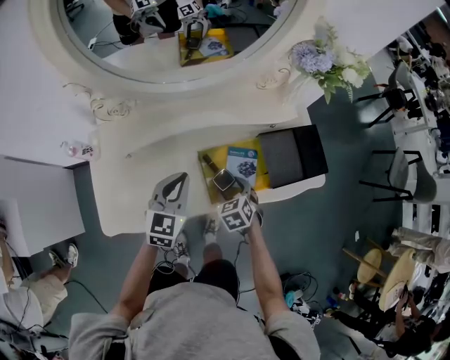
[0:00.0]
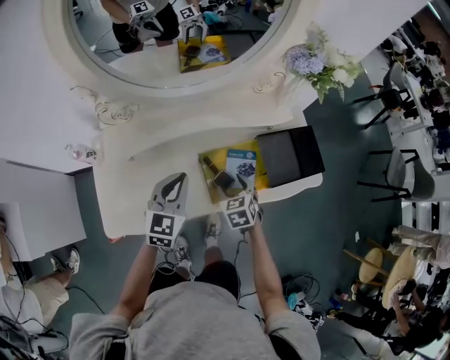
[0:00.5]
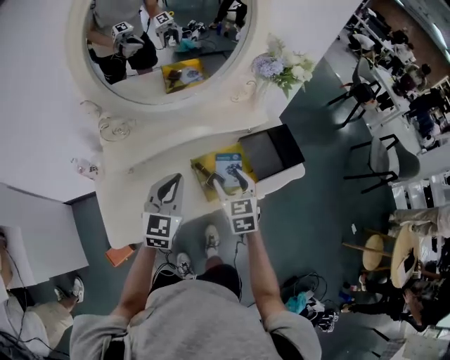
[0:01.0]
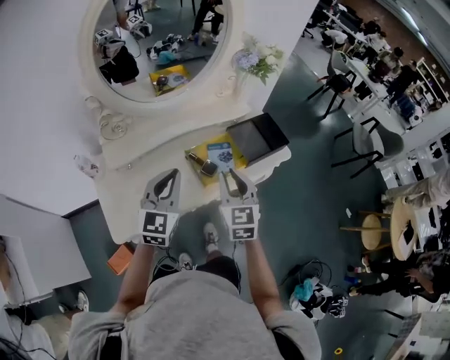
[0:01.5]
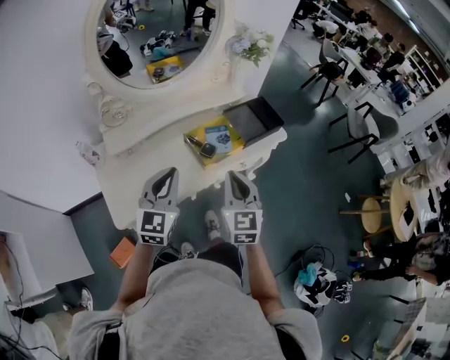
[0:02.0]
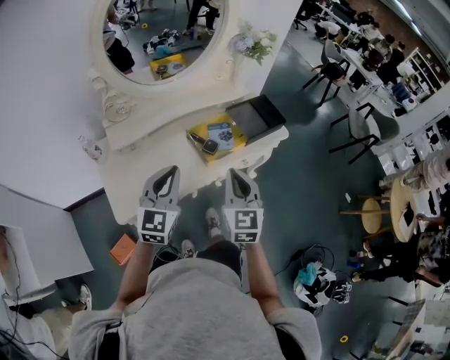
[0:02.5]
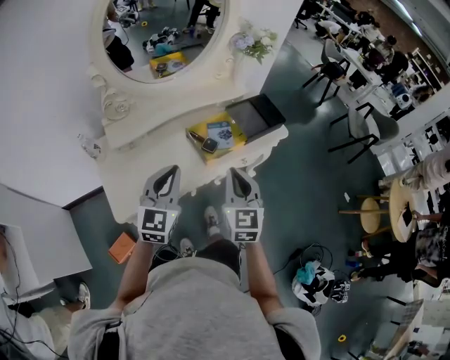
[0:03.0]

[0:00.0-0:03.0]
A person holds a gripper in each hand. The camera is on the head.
0:00.0 to 0:01.5: The left gripper travels upward and backward by approximately 20 cm, and turns by about 20 degrees. Meanwhile the right gripper heads upward and backward, covering roughly 30 cm, angles its fingers upward, by about 40 degrees, and closes.
0:01.5 to 0:03.0: Both grippers move backward, approximately 10 cm.

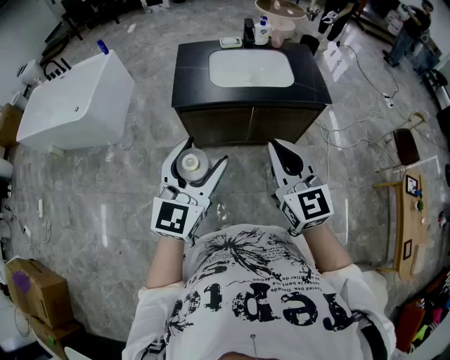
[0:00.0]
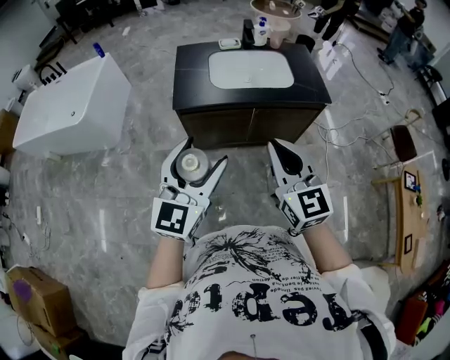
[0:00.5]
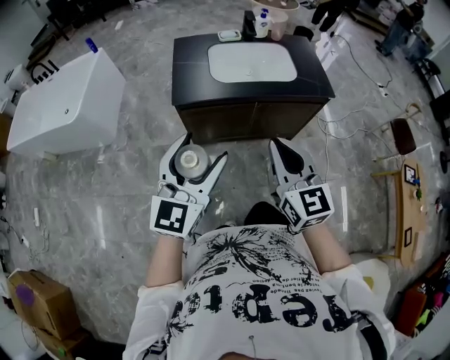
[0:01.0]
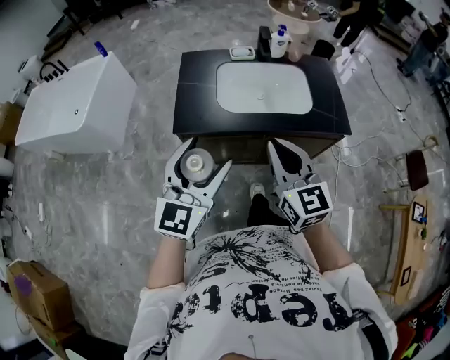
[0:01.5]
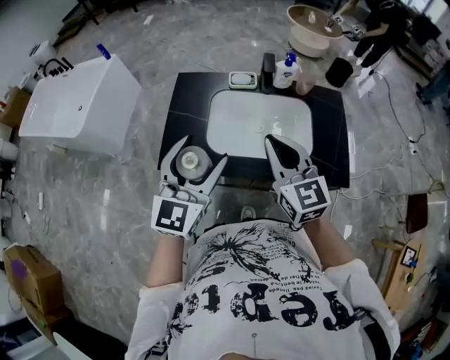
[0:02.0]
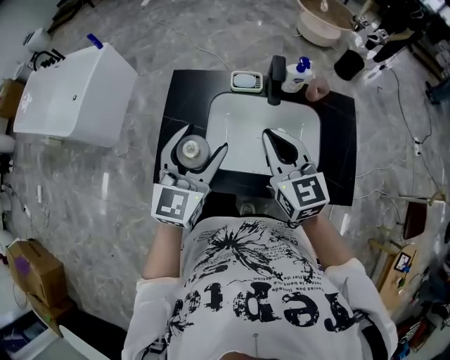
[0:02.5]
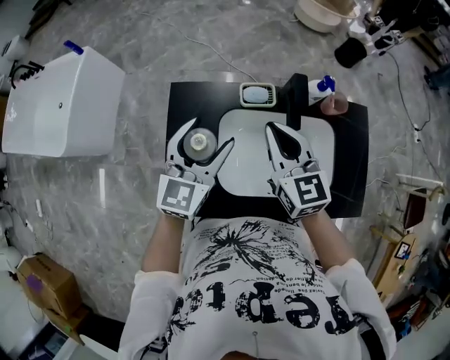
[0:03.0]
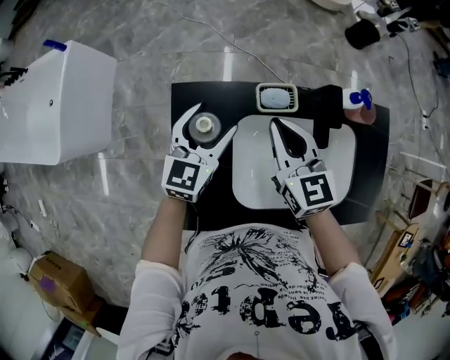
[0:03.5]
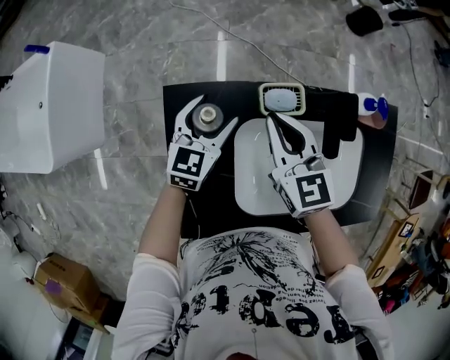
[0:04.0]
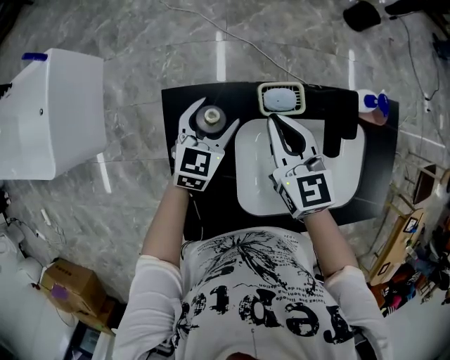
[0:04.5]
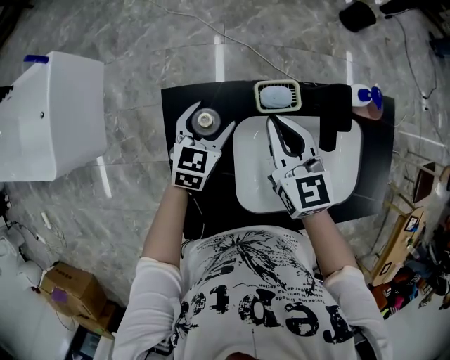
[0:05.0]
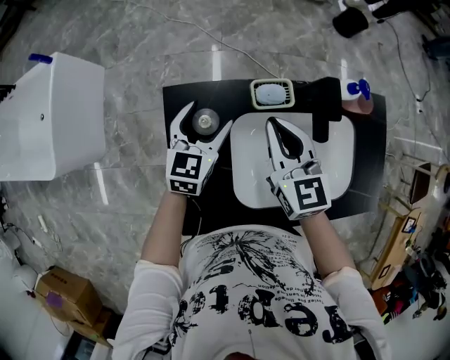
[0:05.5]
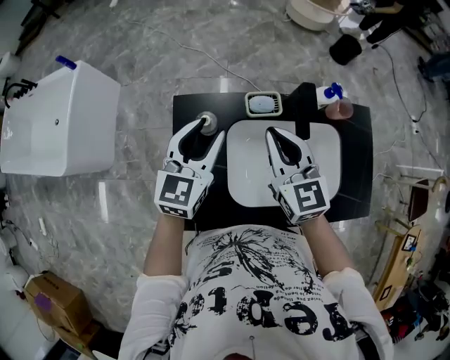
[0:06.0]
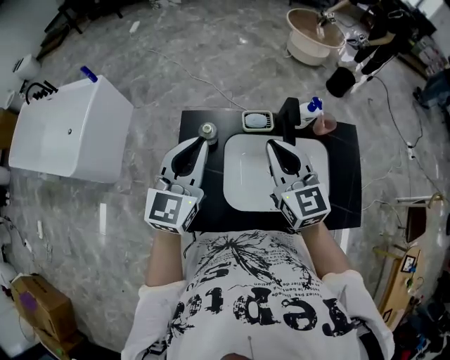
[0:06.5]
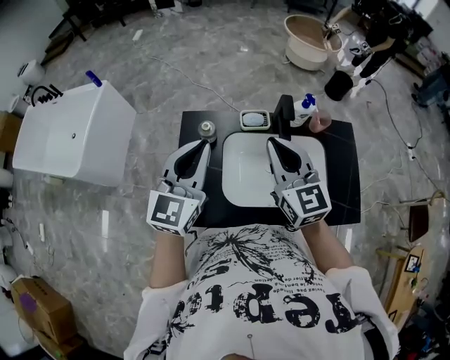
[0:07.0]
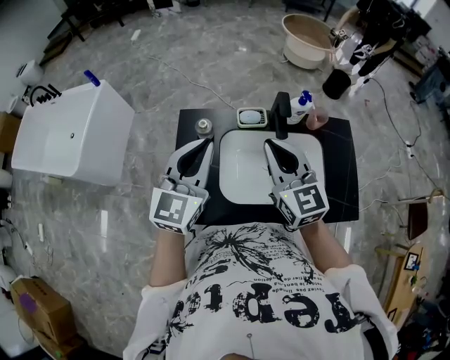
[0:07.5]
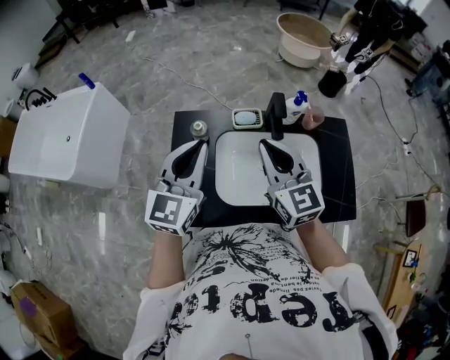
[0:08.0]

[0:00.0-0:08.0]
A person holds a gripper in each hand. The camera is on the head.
0:00.0 to 0:02.0: The two grippers travel together, forward, roughly 50 cm.
0:02.0 to 0:04.0: The pair of grippers is taken forward, approximately 50 cm. The grippers both shift downward by roughly 25 cm. The left gripper swivels approximately 30 degrees.
0:04.0 to 0:06.0: The two grippers go approximately 20 cm upward and backward. The left gripper closes its fingers.
0:06.0 to 0:08.0: Both grippers move backward and upward, approximately 15 cm. The left gripper closes.

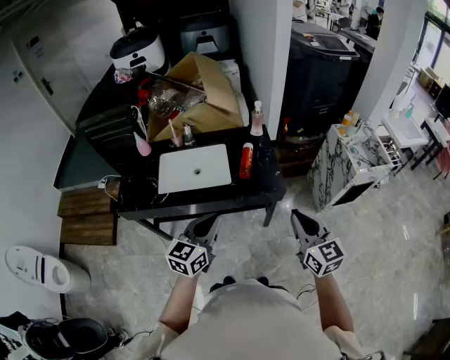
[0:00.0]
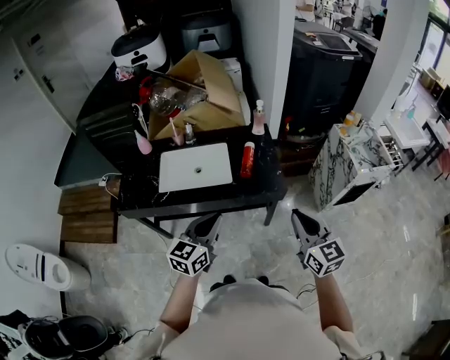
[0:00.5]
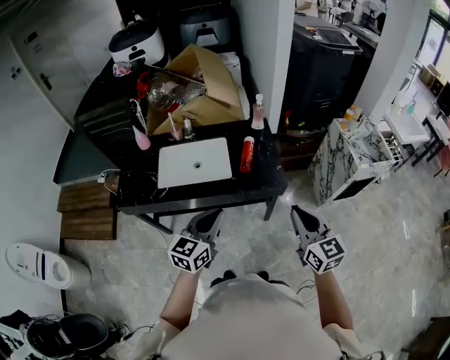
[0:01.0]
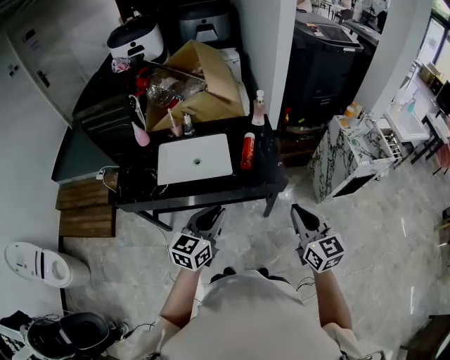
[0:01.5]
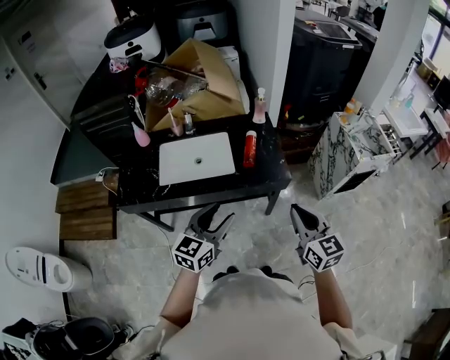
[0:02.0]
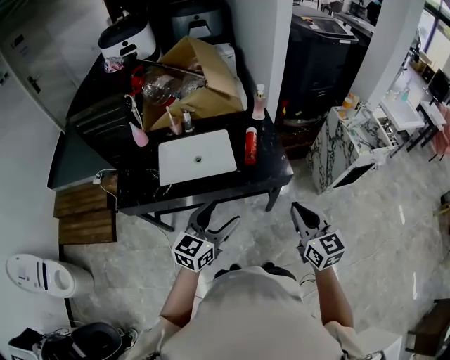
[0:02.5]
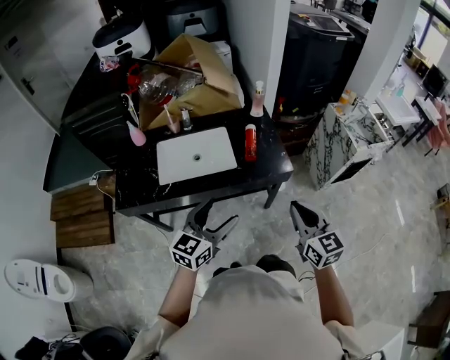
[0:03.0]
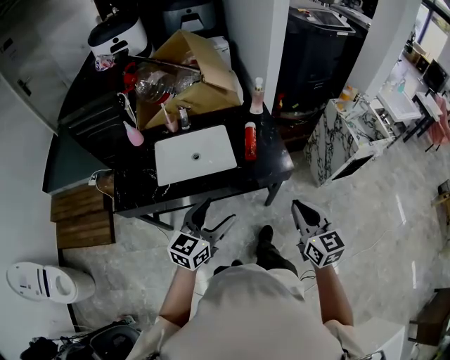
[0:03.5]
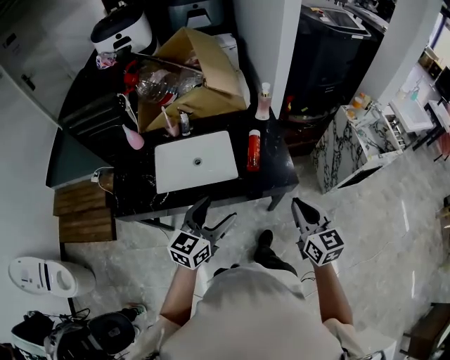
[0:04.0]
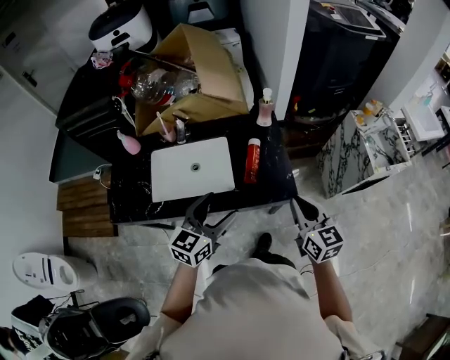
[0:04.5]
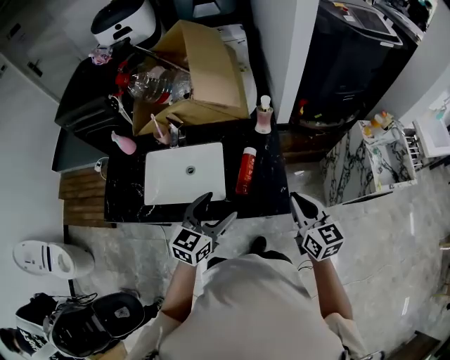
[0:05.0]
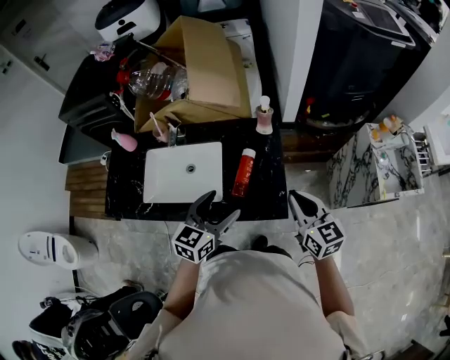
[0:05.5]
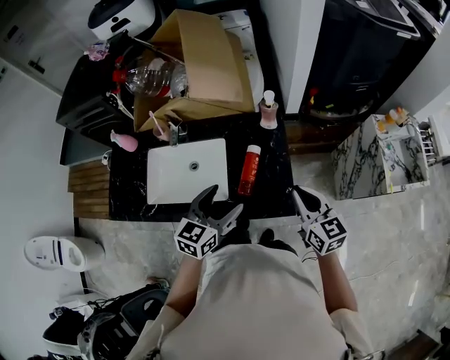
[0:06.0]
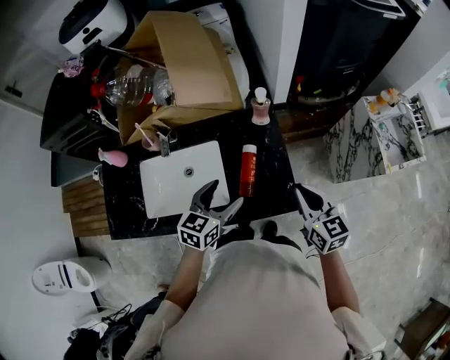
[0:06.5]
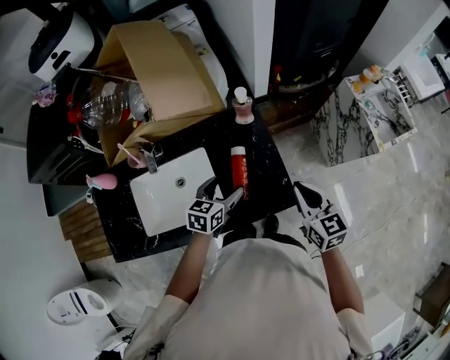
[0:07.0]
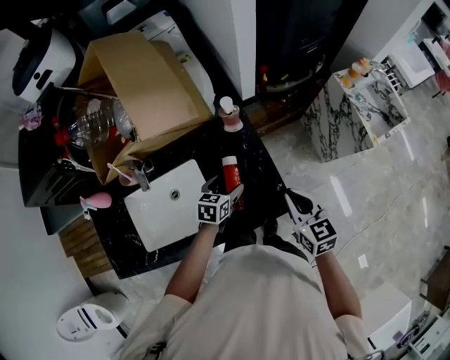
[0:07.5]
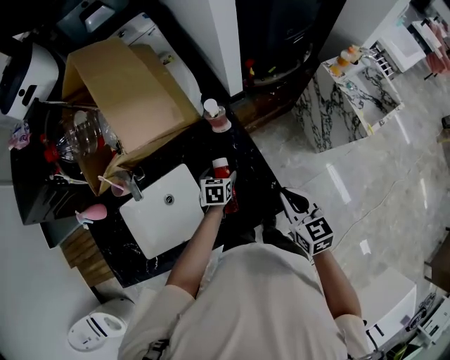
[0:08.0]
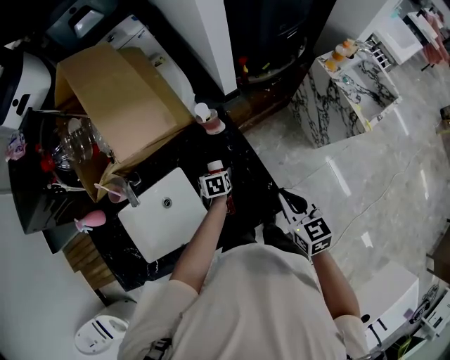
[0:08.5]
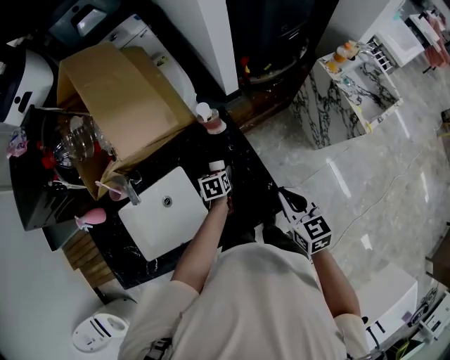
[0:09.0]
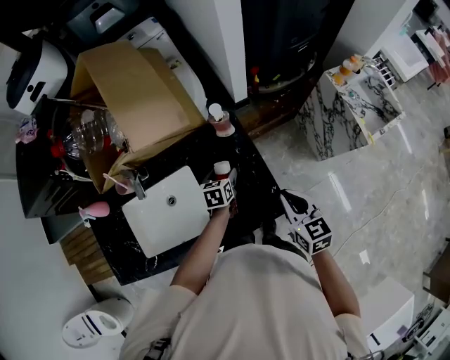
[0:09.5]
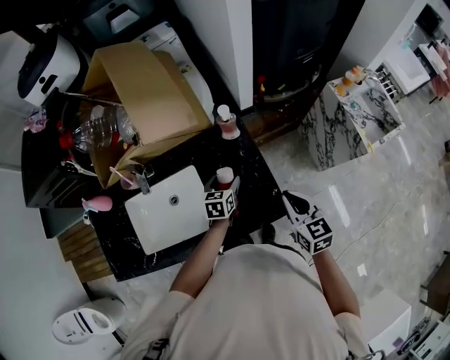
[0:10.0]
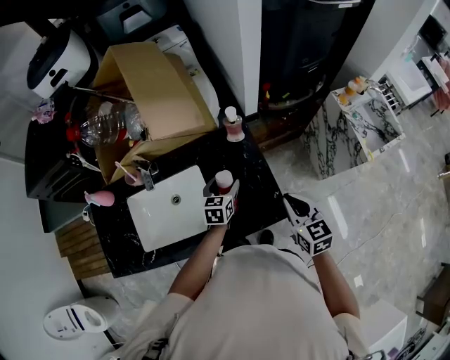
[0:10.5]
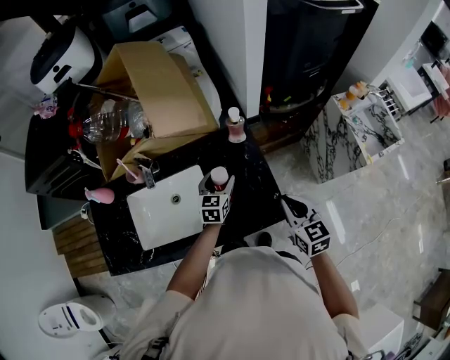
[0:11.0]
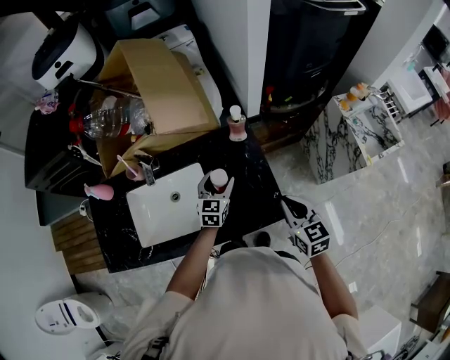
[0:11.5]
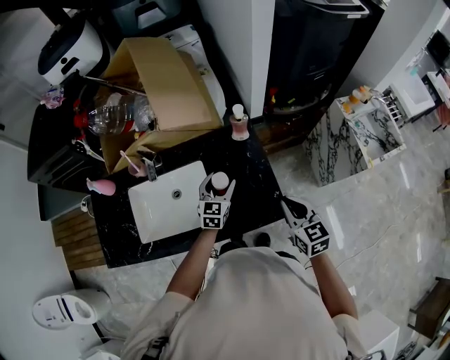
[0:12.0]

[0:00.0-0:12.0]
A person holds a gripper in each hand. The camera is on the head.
0:00.0 to 0:02.0: The left gripper opens.
0:02.0 to 0:04.0: The grippers both shift forward by roughly 10 cm. The left gripper opens up.
0:04.0 to 0:06.0: The left gripper is displaced forward and to the right by some 25 cm; the right gripper heads forward, covering approximately 25 cm.
0:06.0 to 0:08.0: The left gripper is displaced downward and forward by approximately 30 cm, and tips its fingers downward by about 30 degrees. The right gripper is displaced downward by about 5 cm, and rotates about 20 degrees.
0:08.0 to 0:10.0: The left gripper is displaced upward by some 5 cm.
0:10.0 to 0:12.0: The left gripper shifts roughly 5 cm upward, and swivels about 30 degrees.

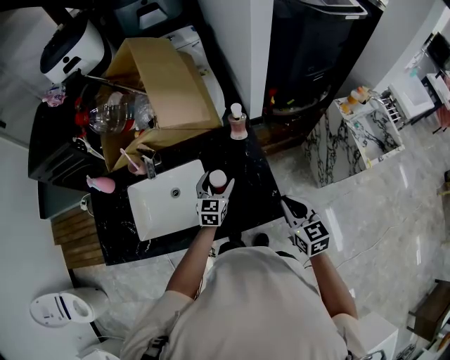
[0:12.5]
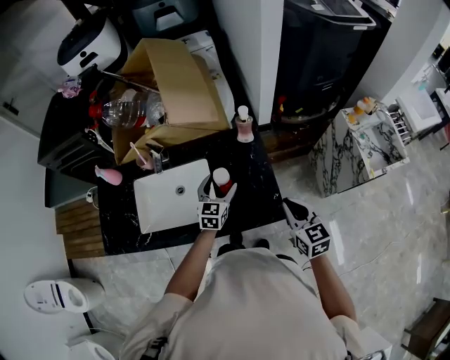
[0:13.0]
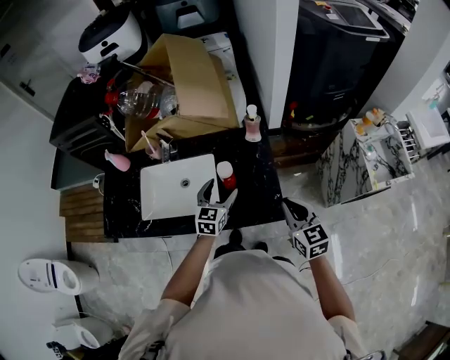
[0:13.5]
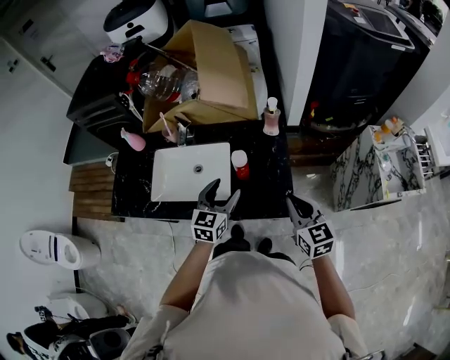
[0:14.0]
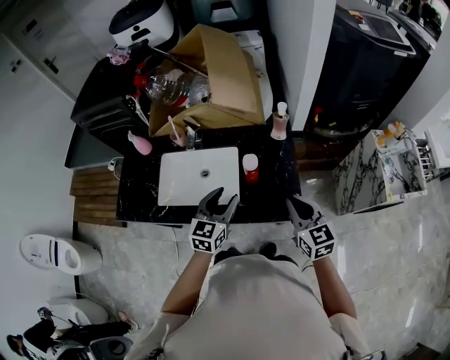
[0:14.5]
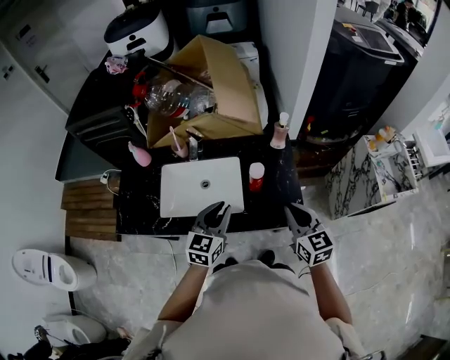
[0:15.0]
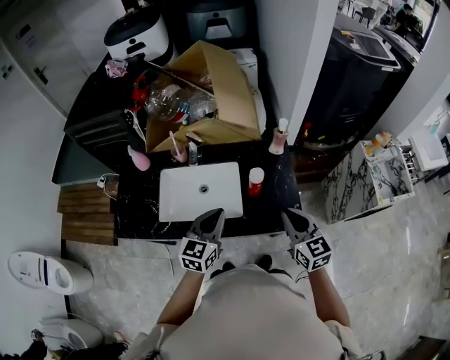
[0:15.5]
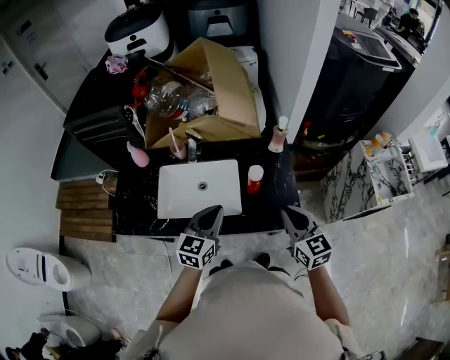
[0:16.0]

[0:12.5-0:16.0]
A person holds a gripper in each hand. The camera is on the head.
0:12.5 to 0:14.5: The left gripper travels backward, upward and to the left by about 20 cm, and closes up. Meanwhile the right gripper goes roughly 5 cm to the left.
0:14.5 to 0:16.0: Both grippers travel together to the left, some 5 cm. The left gripper closes.
